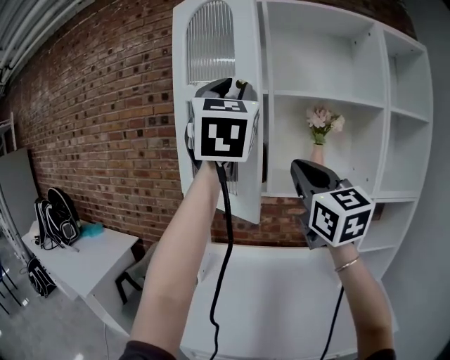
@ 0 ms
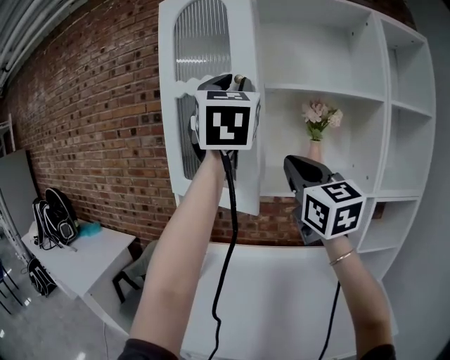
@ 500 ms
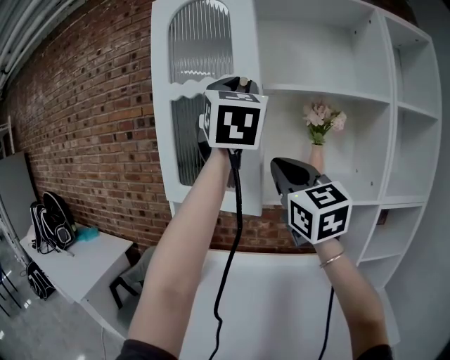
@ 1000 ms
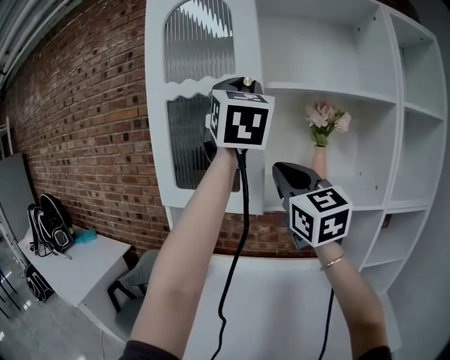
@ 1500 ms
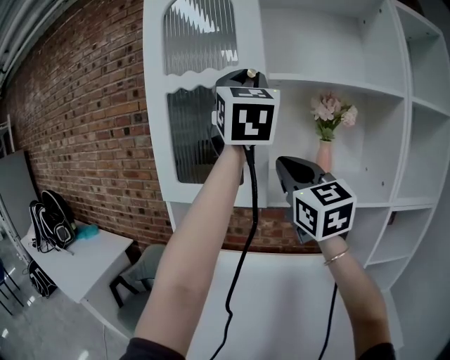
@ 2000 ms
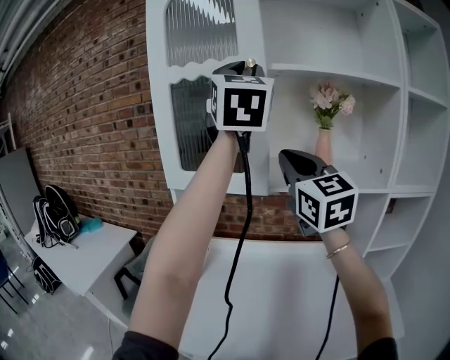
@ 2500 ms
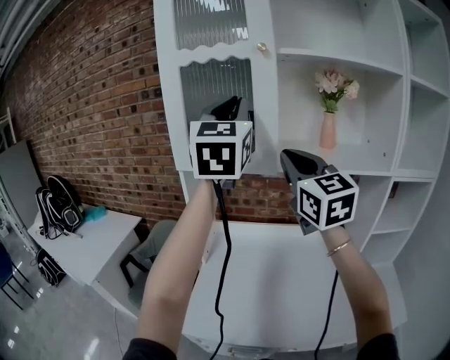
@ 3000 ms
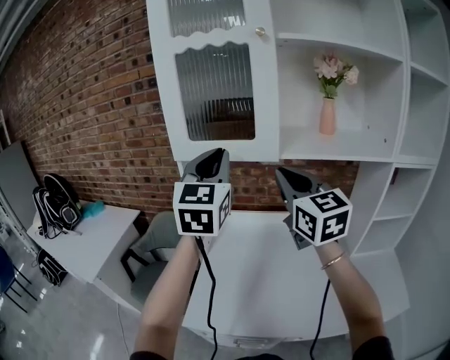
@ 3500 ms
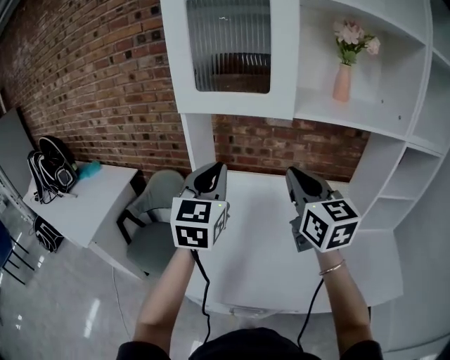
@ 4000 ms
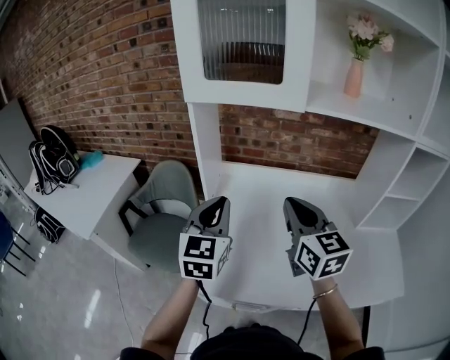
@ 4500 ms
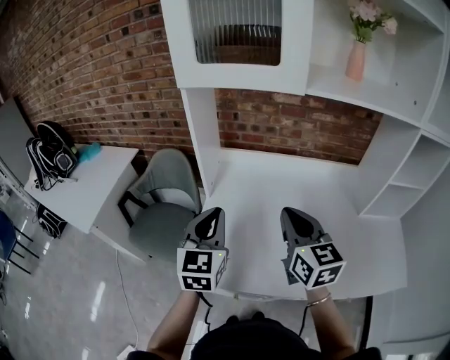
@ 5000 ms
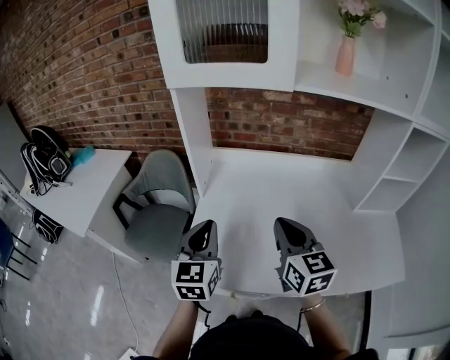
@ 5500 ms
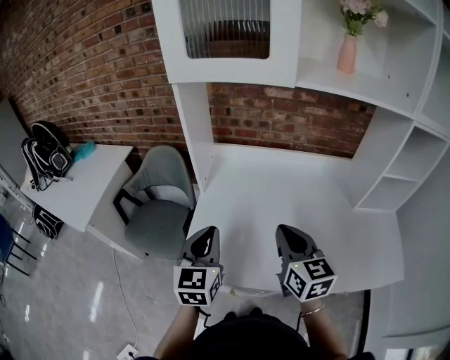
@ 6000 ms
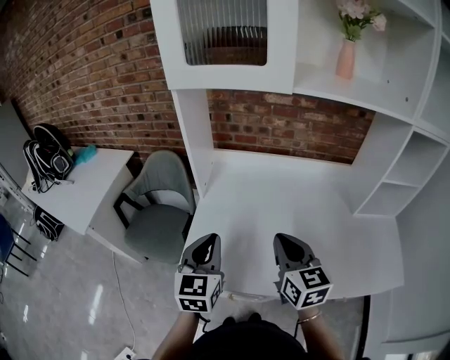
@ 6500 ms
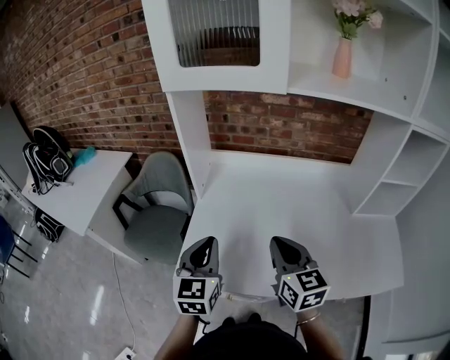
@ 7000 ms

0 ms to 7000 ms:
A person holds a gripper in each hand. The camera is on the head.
0 ms to 2000 ms: The left gripper is displaced forward and to the right by about 15 cm; the right gripper heads forward, covering about 15 cm.
2000 ms to 3500 ms: The right gripper travels downward by some 10 cm. Meanwhile the left gripper shifts approximately 30 cm downward and to the left, and swivels about 20 degrees.
3500 ms to 5000 ms: Both grippers travel together downward, about 25 cm. The left gripper changes its angle by some 20 degrees; the right gripper changes its angle by roughly 20 degrees.
5000 ms to 7000 ms: The right gripper heads downward and backward, covering some 10 cm. The left gripper moves backward and downward, about 10 cm.

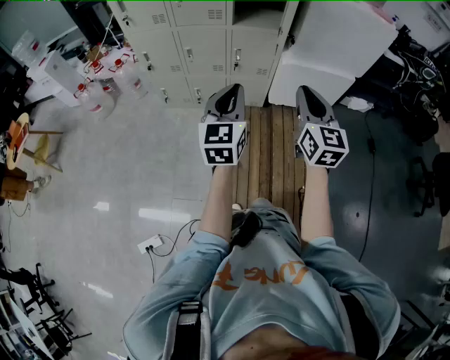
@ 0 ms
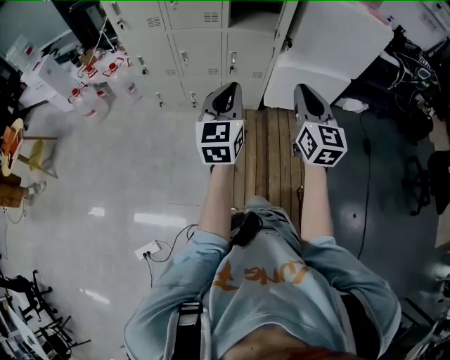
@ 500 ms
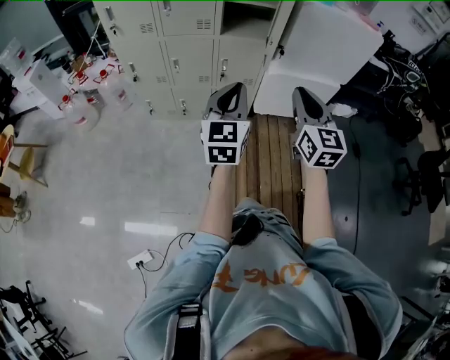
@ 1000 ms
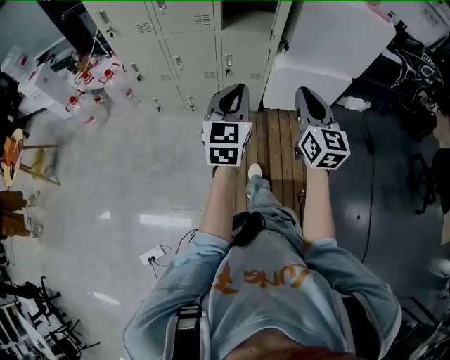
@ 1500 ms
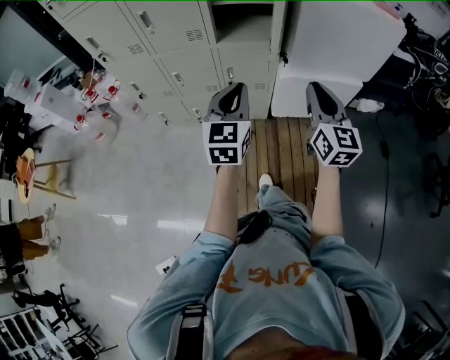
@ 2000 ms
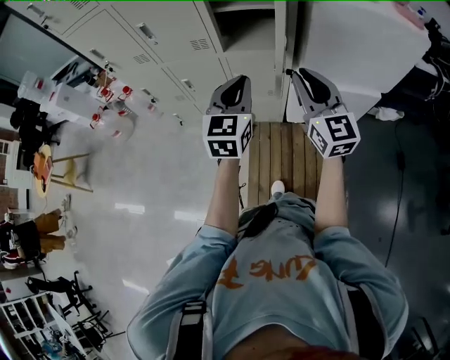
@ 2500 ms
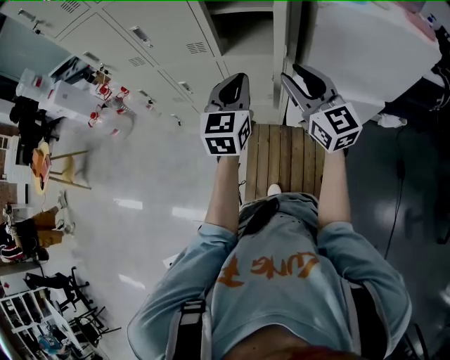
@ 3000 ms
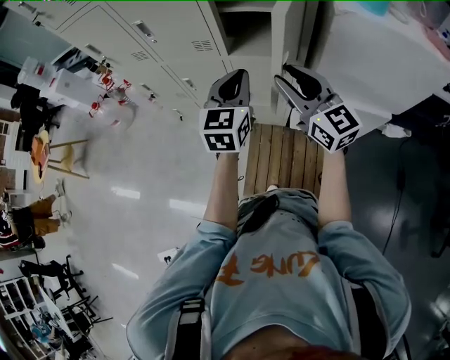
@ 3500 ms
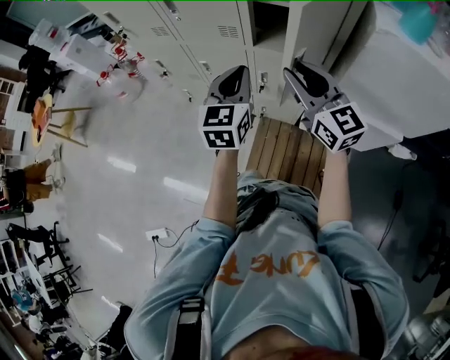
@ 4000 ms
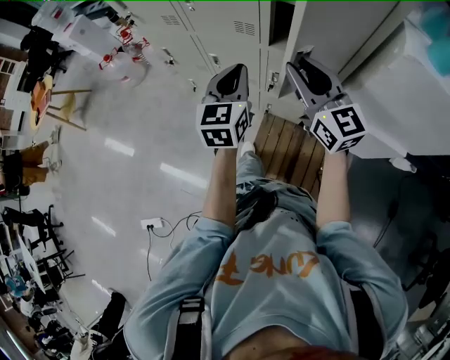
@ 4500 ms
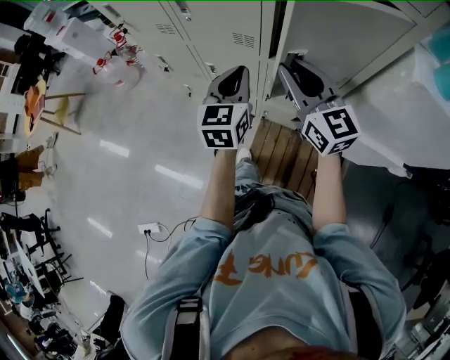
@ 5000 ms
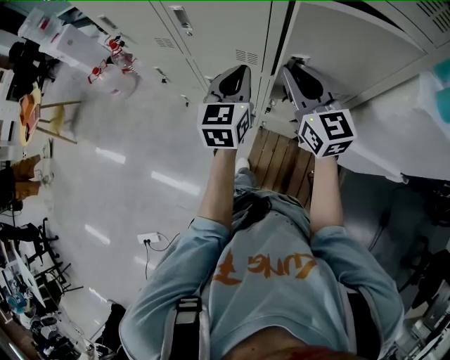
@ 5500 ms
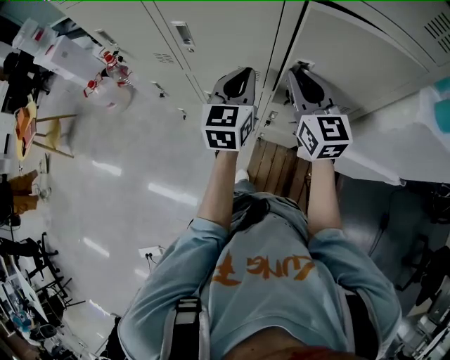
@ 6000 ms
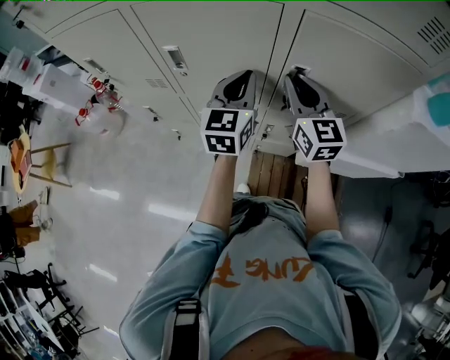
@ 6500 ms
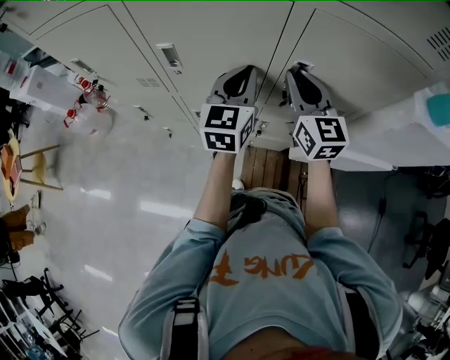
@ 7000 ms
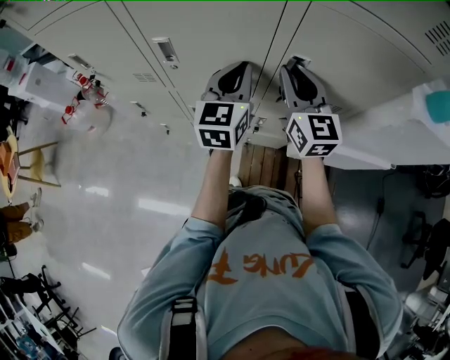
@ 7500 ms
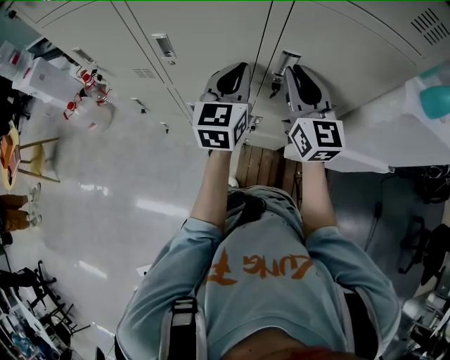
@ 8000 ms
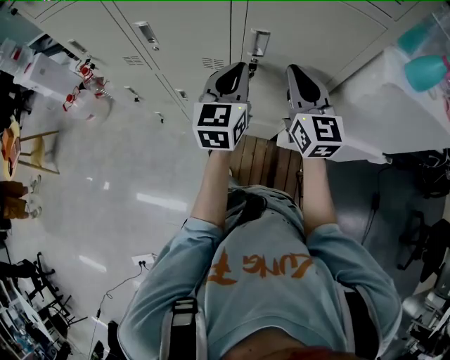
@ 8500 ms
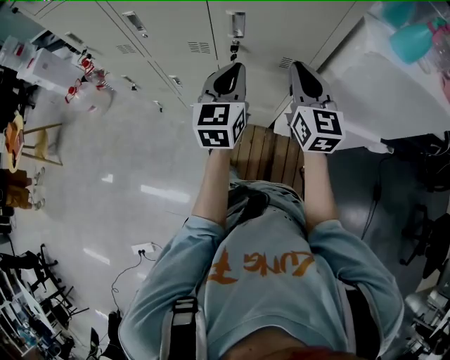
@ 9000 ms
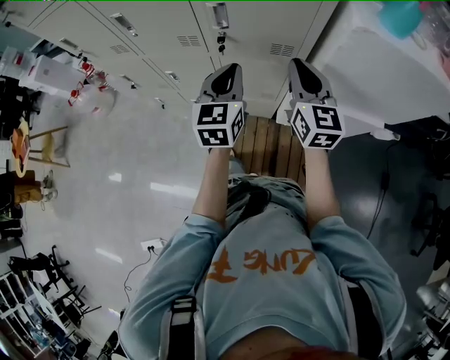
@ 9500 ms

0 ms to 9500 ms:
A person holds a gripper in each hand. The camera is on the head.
0 ms to 2000 ms: The left gripper heads forward, covering approximately 20 cm. Meanwhile the right gripper heads forward and to the right, covering roughly 20 cm.
2000 ms to 4000 ms: The left gripper ends up about 20 cm from where it was, while the right gripper ends up about 25 cm from where it was, and changes its angle by approximately 40 degrees.
4000 ms to 5500 ms: Both grippers travel together forward, about 15 cm.
5500 ms to 7500 ms: The grippers both shift forward by some 10 cm.
7500 ms to 9500 ms: The left gripper travels backward and to the right by some 20 cm, while the right gripper goes roughly 25 cm to the right and backward.

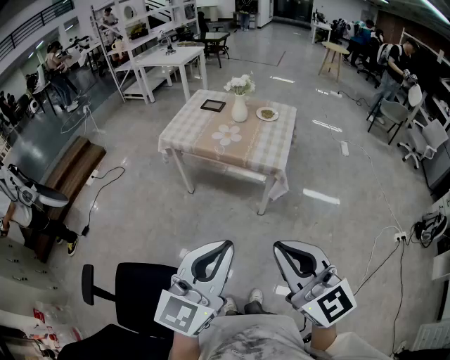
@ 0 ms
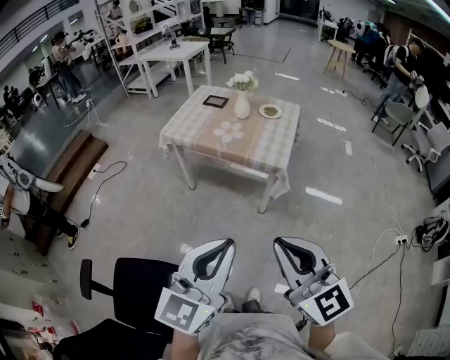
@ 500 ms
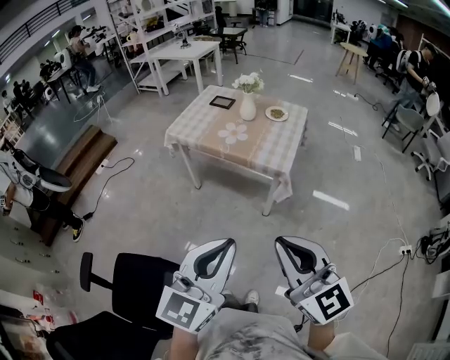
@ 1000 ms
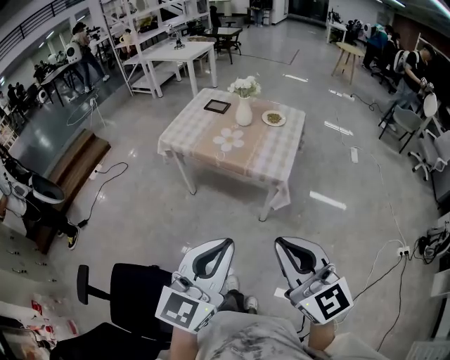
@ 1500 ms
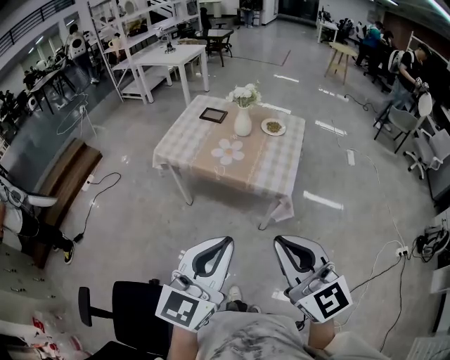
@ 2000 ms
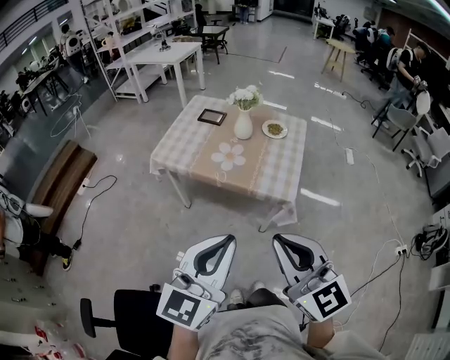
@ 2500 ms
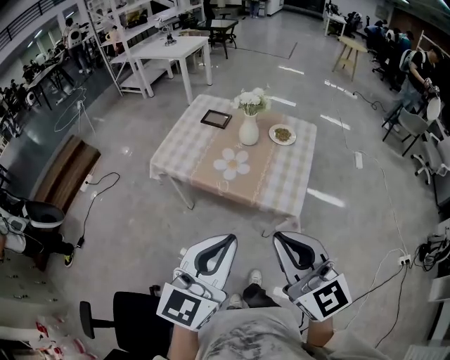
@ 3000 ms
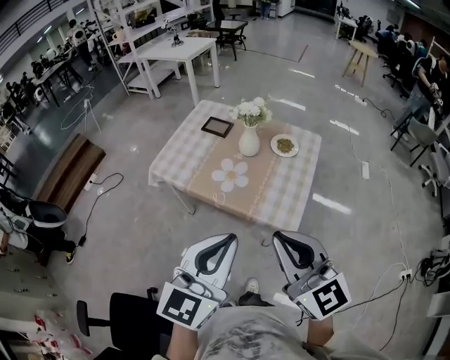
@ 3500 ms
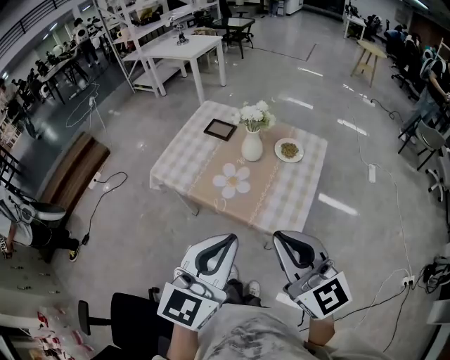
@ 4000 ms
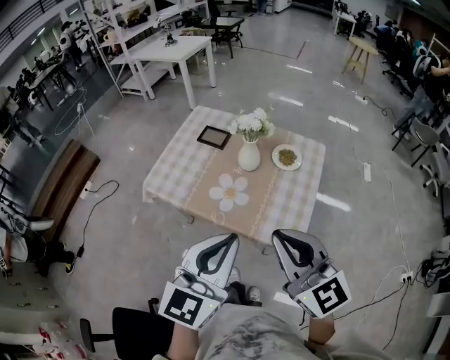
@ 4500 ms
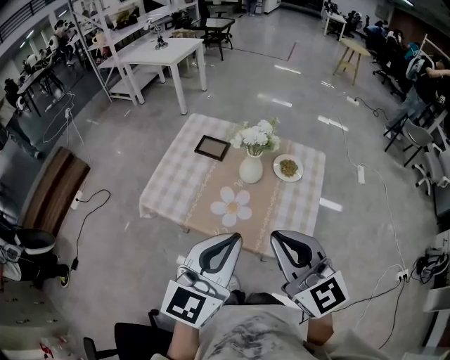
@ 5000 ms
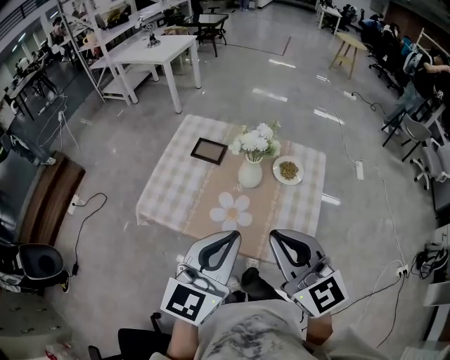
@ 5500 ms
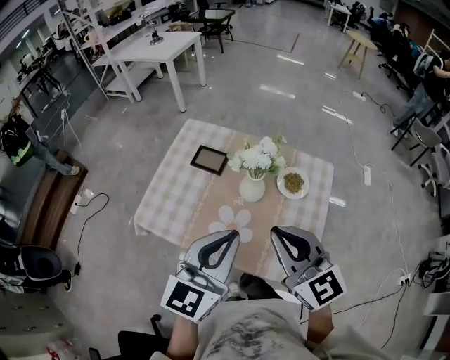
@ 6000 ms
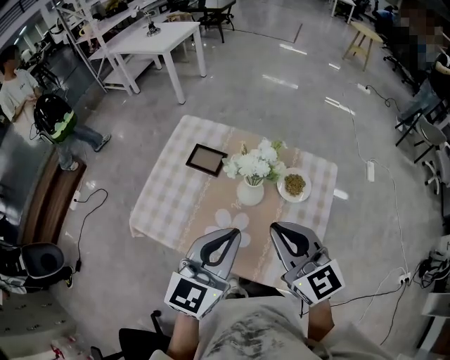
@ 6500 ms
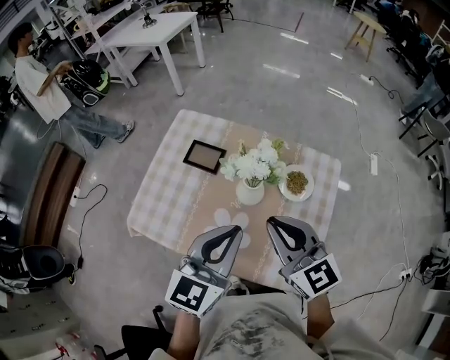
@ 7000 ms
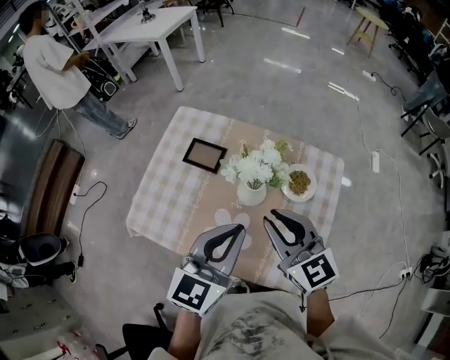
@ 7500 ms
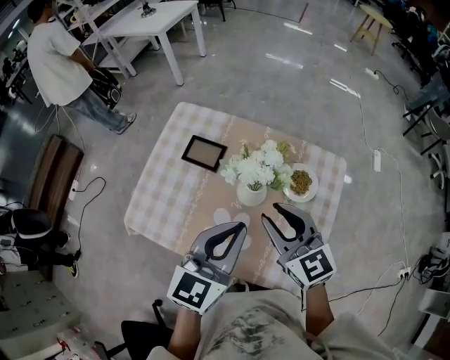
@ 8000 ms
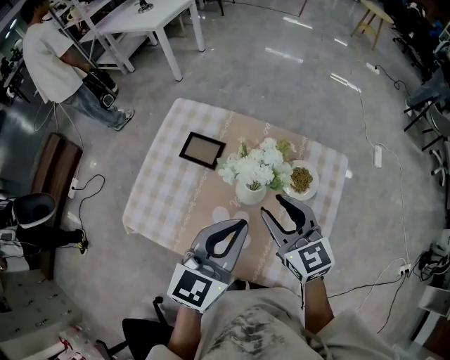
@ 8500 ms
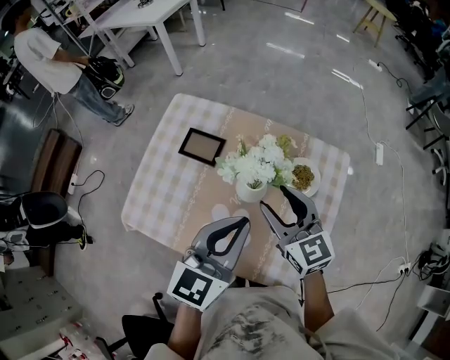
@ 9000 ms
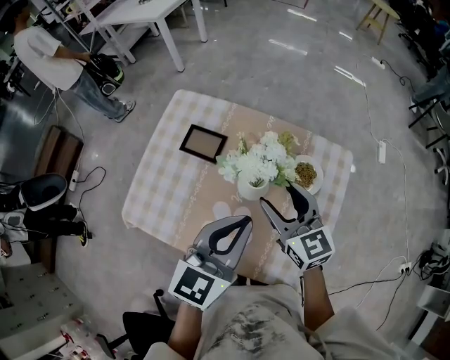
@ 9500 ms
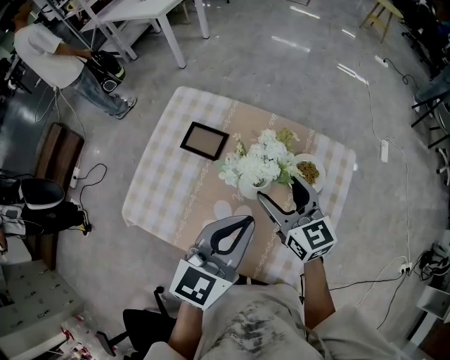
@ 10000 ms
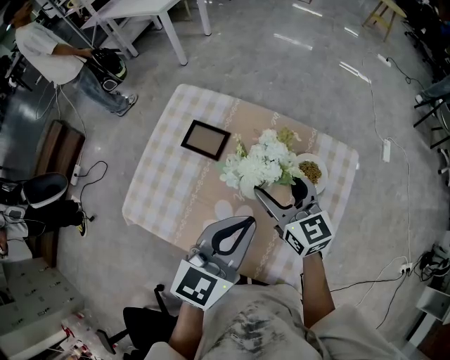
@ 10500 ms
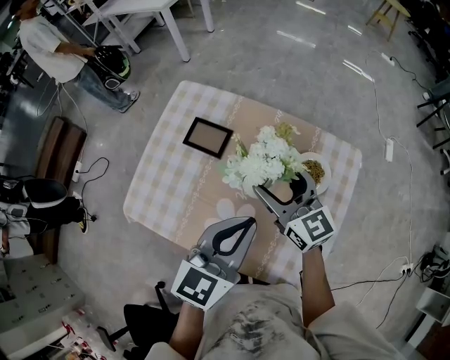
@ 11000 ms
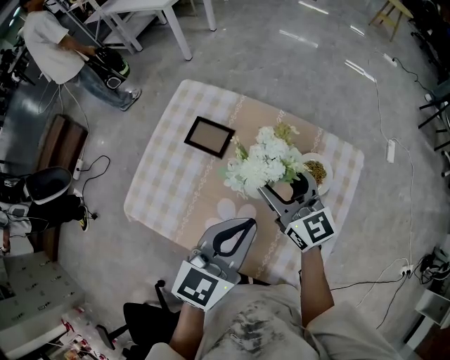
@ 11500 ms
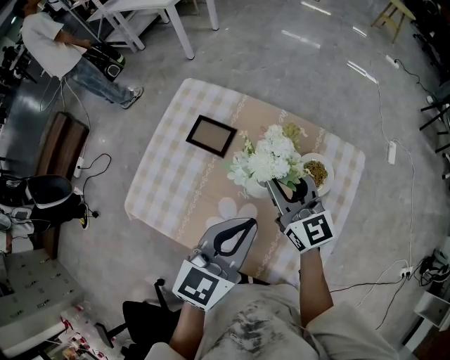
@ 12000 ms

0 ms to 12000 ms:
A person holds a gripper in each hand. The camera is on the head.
0 ms to 2000 ms: Both grippers move forward, approximately 20 cm.
2000 ms to 4000 ms: The two grippers go some 25 cm forward.
4000 ms to 6000 ms: Both grippers move forward, approximately 25 cm.
6000 ms to 8000 ms: Both grippers travel together forward and downward, some 15 cm.
8000 ms to 10000 ms: The right gripper moves forward and downward, about 10 cm, and opens up.
10000 ms to 12000 ms: The right gripper closes its fingers.
